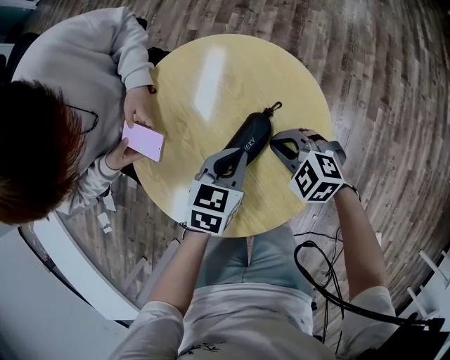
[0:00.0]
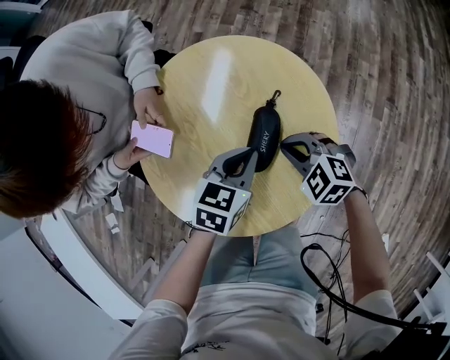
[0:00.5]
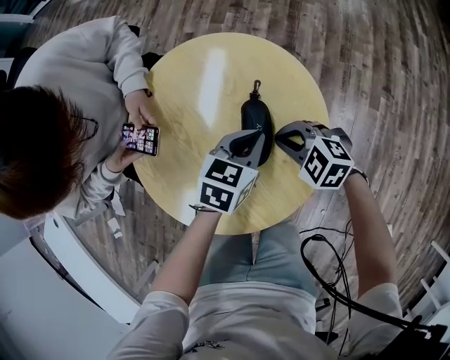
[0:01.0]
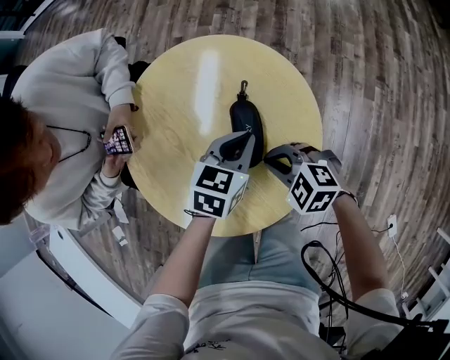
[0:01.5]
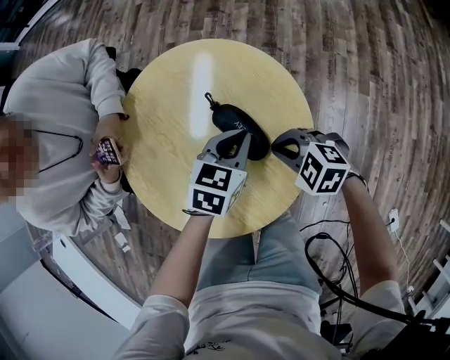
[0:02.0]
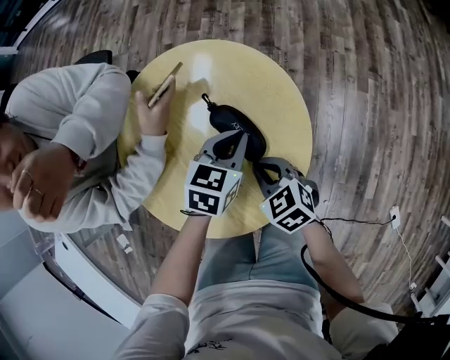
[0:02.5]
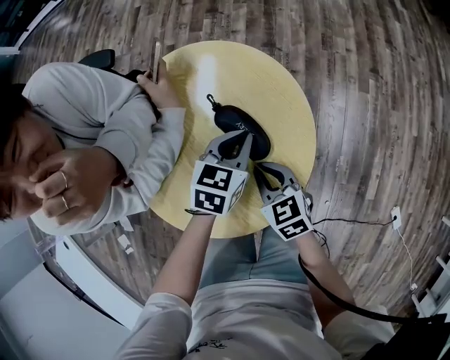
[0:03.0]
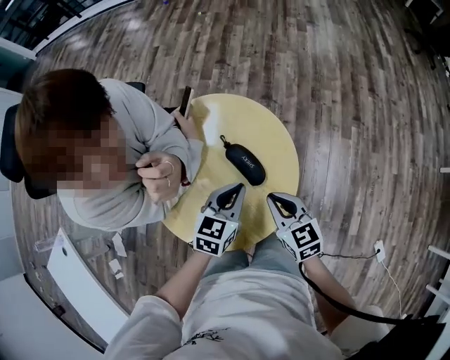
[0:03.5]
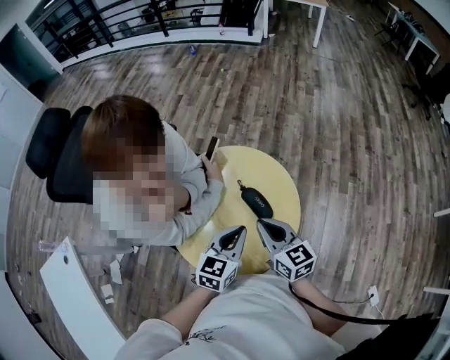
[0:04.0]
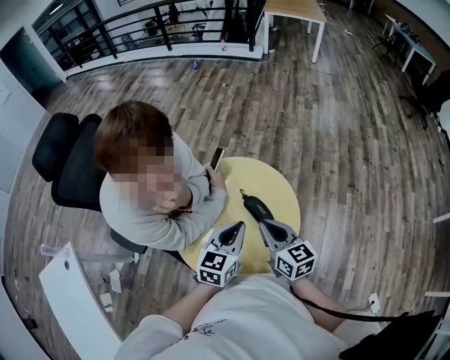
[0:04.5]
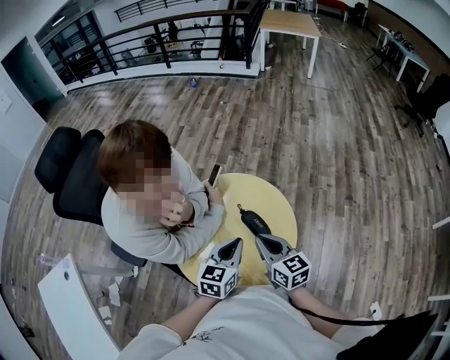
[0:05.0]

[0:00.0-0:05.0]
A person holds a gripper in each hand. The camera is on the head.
0:00.0 to 0:02.5: The right gripper is displaced backward by roughly 5 cm, and turns by approximately 40 degrees, while the left gripper is displaced to the right by roughly 5 cm.
0:02.5 to 0:05.0: The right gripper heads upward, covering roughly 25 cm, and angles its fingers upward, by approximately 30 degrees. The left gripper travels upward and backward by some 25 cm, and turns by roughly 20 degrees.

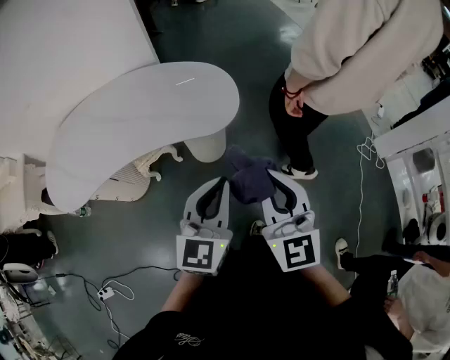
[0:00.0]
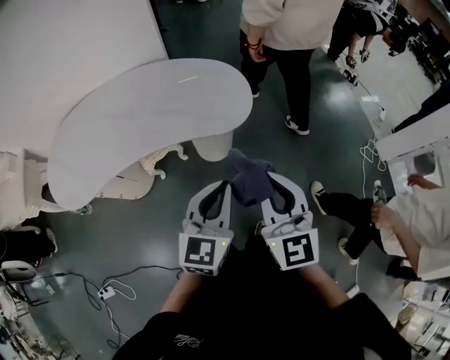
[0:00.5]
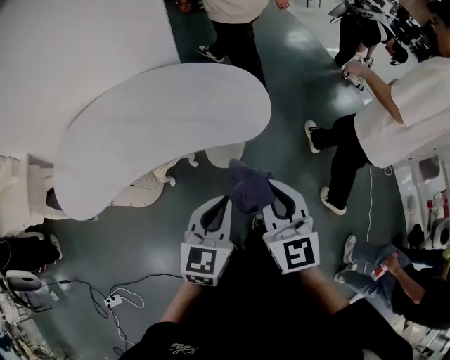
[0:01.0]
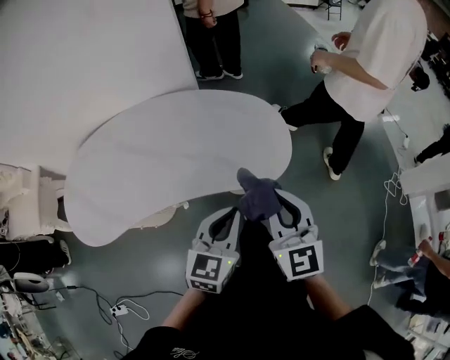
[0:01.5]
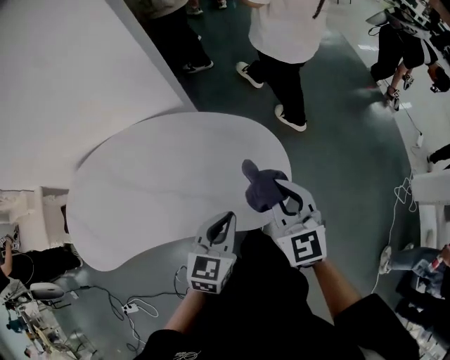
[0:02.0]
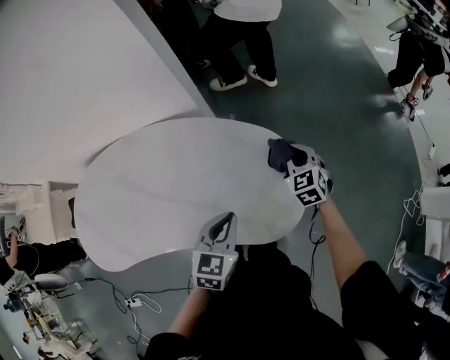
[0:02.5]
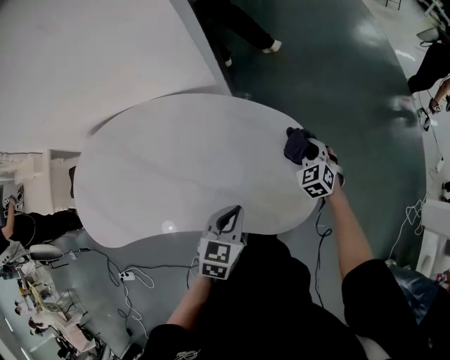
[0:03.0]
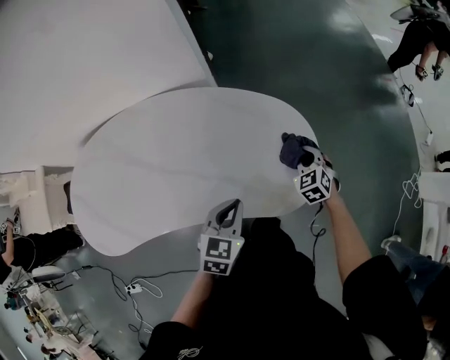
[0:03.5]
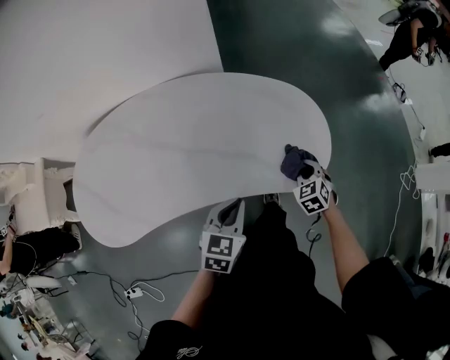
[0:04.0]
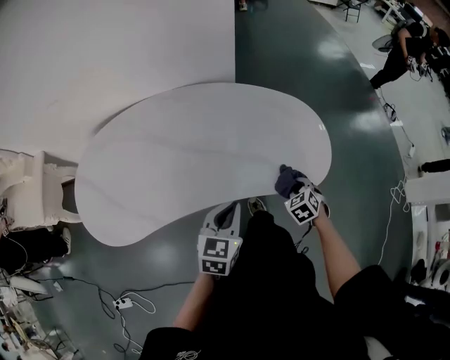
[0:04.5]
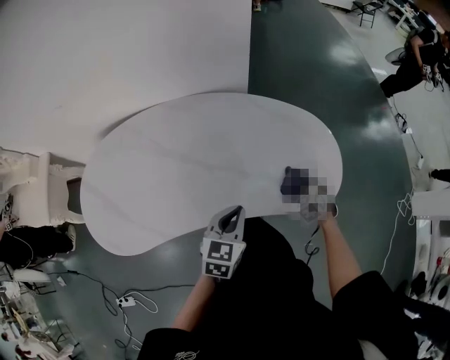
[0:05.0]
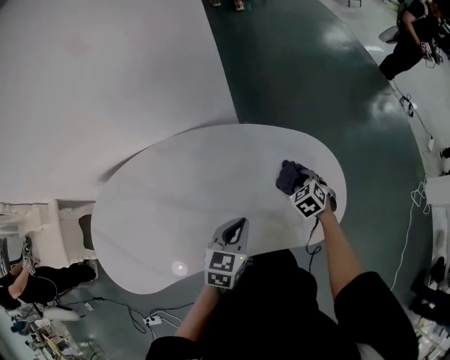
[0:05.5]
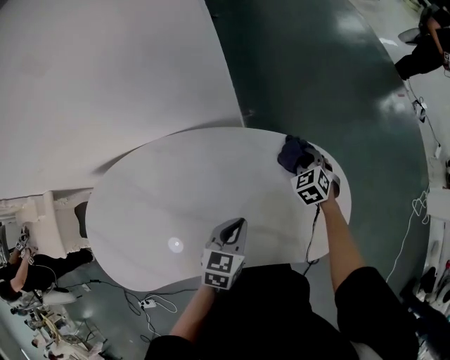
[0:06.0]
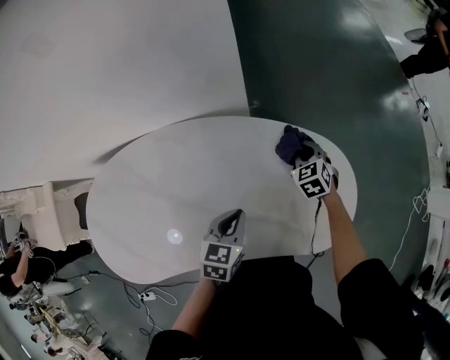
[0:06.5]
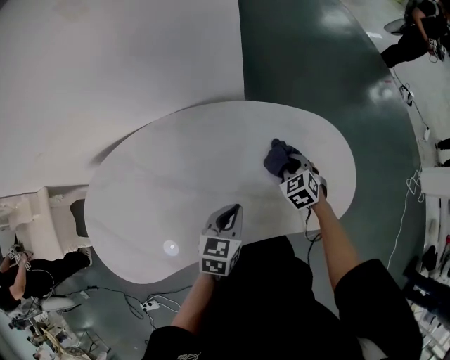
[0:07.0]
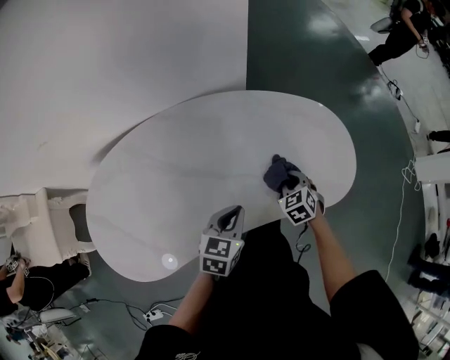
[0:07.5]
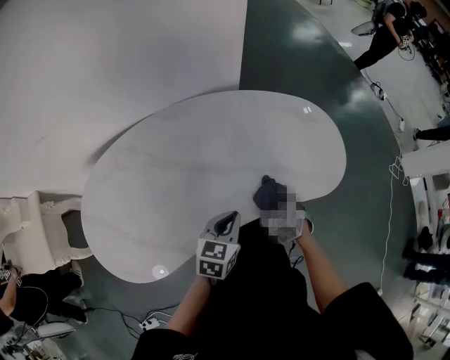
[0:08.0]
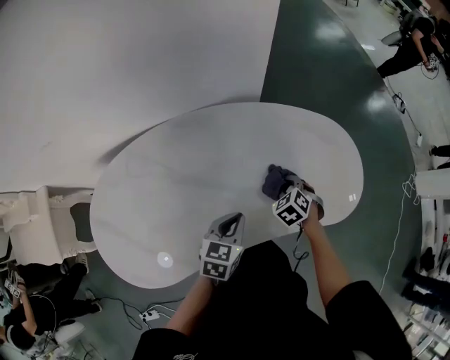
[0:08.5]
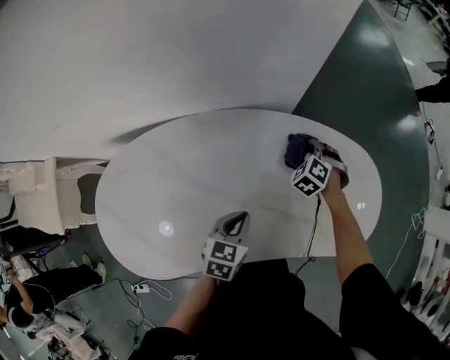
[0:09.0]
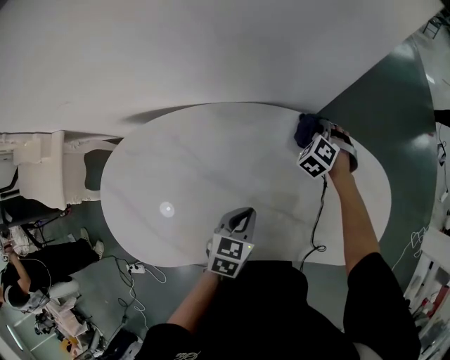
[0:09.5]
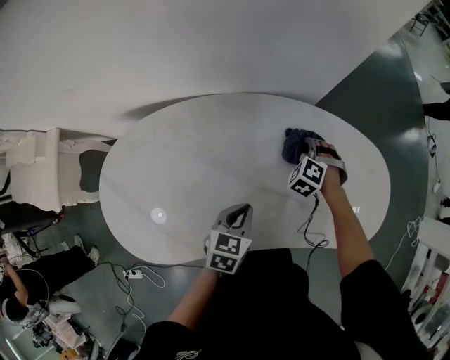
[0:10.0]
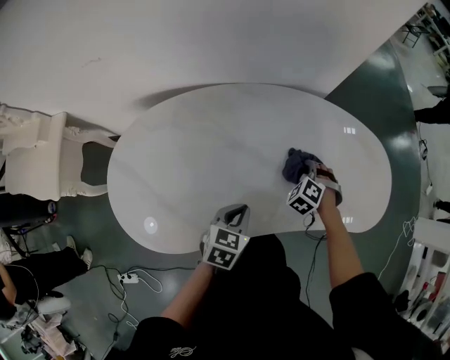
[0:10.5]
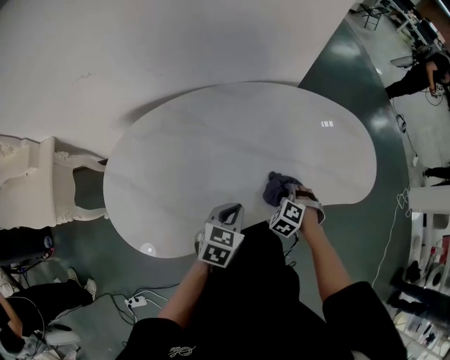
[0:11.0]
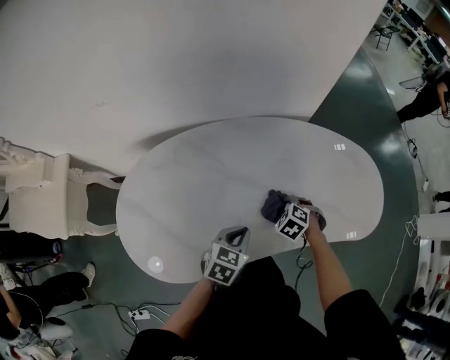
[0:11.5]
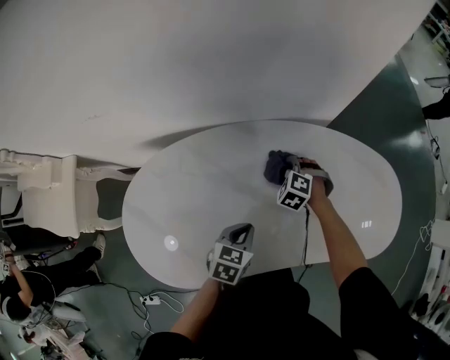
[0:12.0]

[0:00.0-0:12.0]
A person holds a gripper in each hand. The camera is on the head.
0:00.0 to 0:02.0: The right gripper is displaced forward by roughly 40 cm, and turns by about 20 degrees, while the left gripper shifts approximately 35 cm forward and downward, and swivels approximately 30 degrees.
0:02.0 to 0:04.0: The right gripper moves downward, some 25 cm, and tilts its fingers about 30 degrees downward. Meanwhile the left gripper is displaced to the left, backward and downward by some 20 cm.
0:04.0 to 0:06.0: Both grippers travel together forward, about 25 cm.
0:06.0 to 0:08.0: The right gripper is displaced backward by roughly 35 cm. The left gripper goes about 20 cm backward and to the left.
0:08.0 to 0:10.0: The right gripper is displaced forward and to the left by roughly 30 cm, and rotates around the line of its fingers by approximately 50 degrees, counterclockwise from behind, while the left gripper travels to the left and forward by roughly 15 cm.
0:10.0 to 0:12.0: The right gripper goes about 10 cm to the left, and goes backward and returns, about 30 cm each way, while the left gripper travels to the left by approximately 5 cm, and travels backward and back again, roughly 15 cm each way.

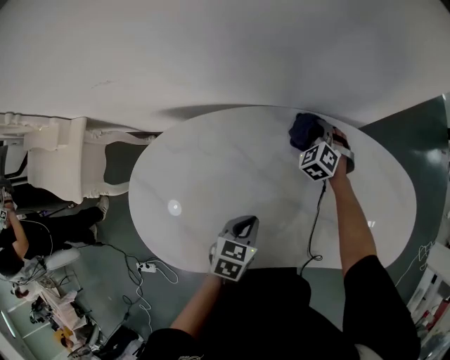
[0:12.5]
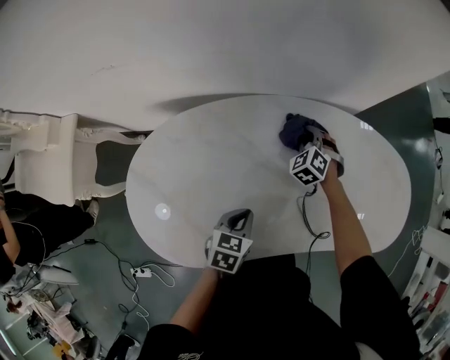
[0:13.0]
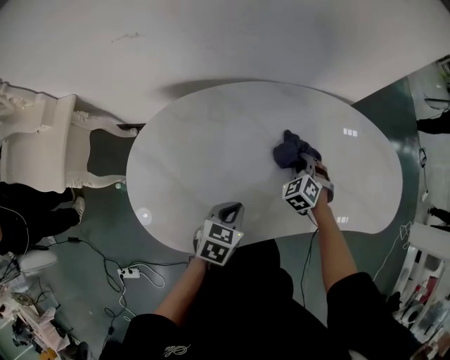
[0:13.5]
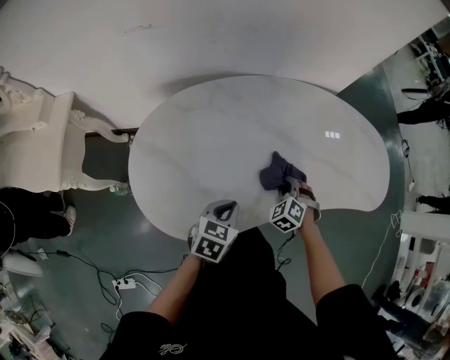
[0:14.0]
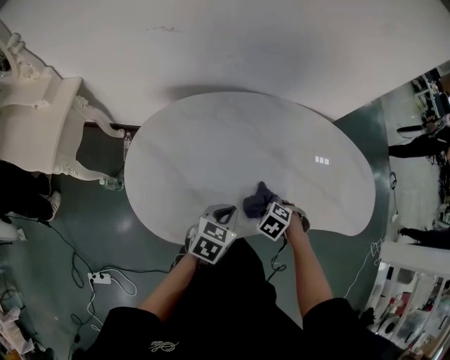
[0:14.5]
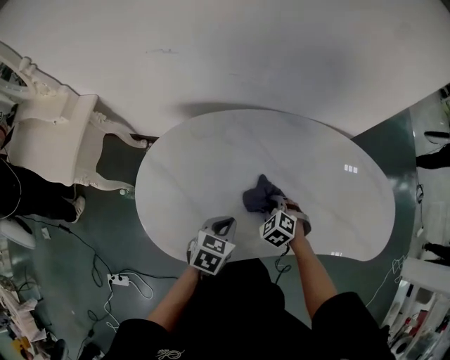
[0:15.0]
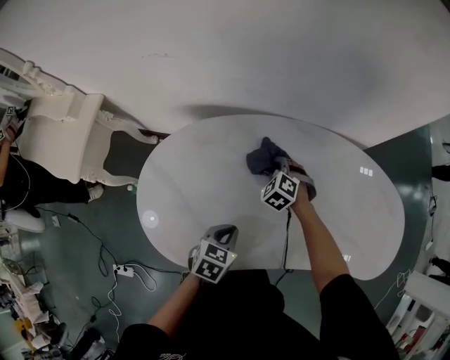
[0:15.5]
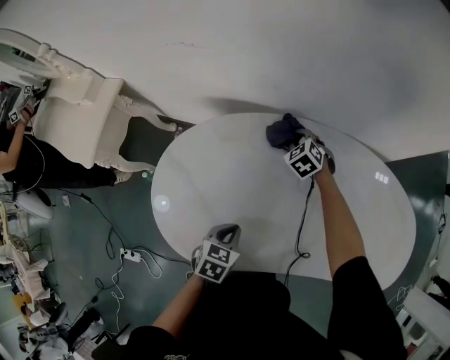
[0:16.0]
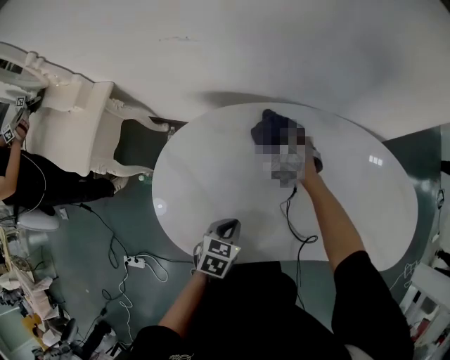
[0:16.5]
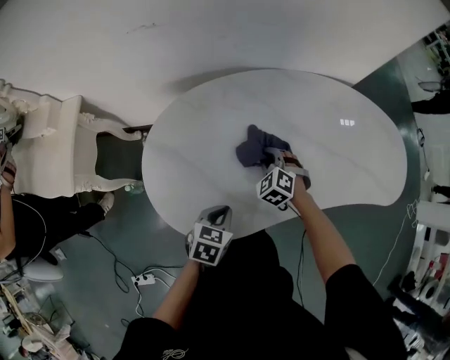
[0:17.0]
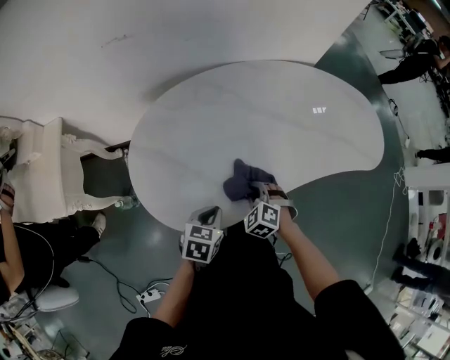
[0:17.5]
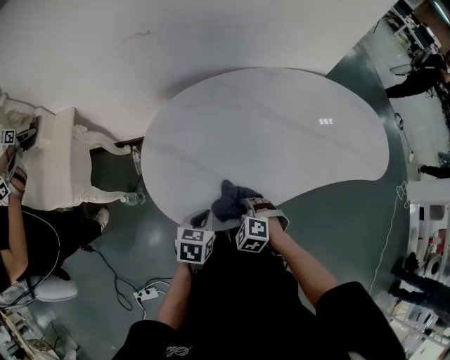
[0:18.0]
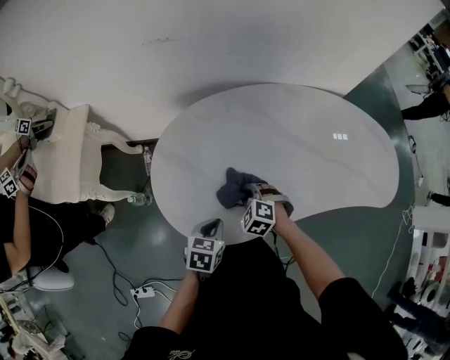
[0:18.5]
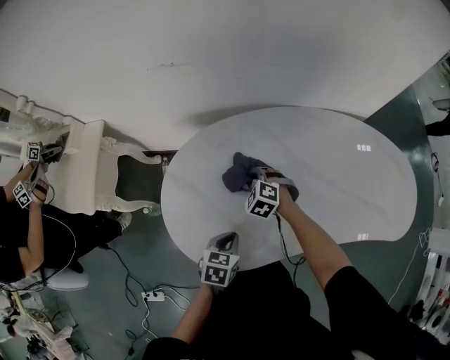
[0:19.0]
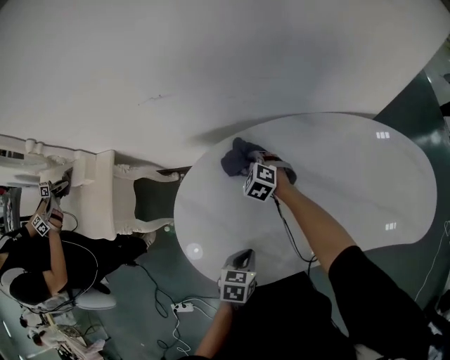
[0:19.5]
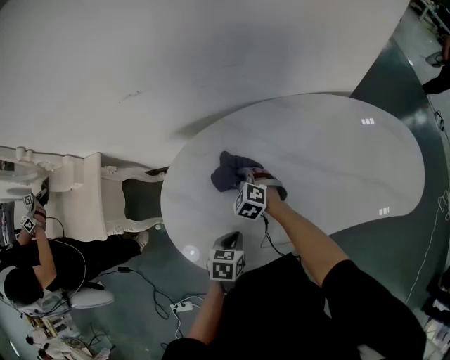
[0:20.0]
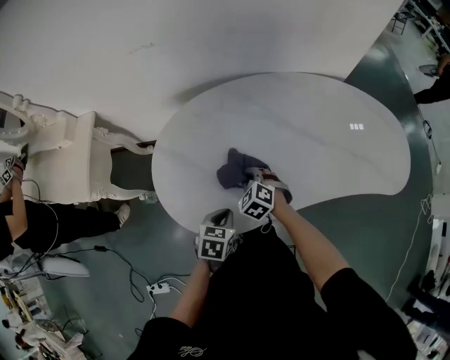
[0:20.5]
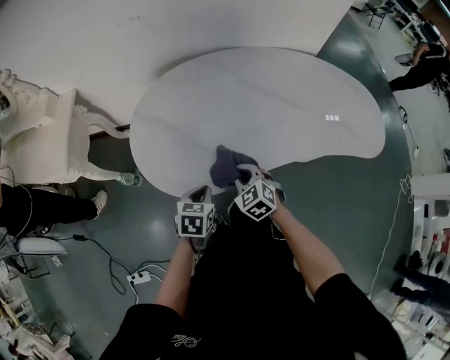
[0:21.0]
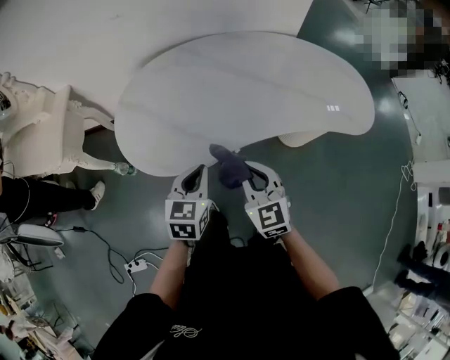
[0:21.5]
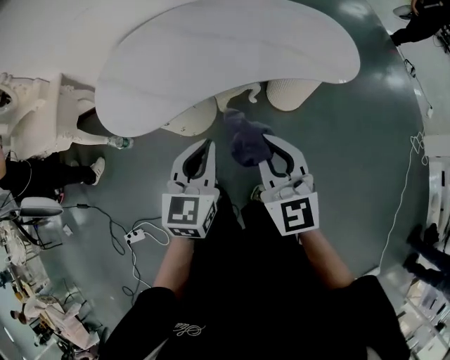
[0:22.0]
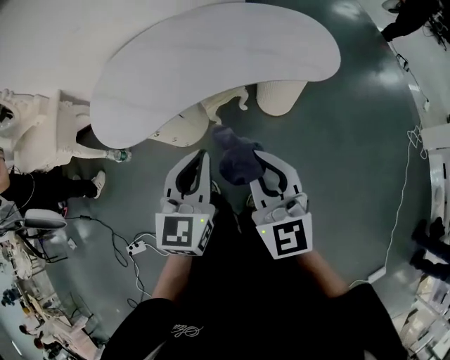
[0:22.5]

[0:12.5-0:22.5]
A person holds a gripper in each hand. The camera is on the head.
0:12.5 to 0:14.5: The right gripper changes place by roughly 40 cm, and angles its fingers downward, by about 40 degrees. The left gripper moves approximately 15 cm.
0:14.5 to 0:16.5: The right gripper ends up about 35 cm from where it was, and tips its fingers upward by approximately 40 degrees, while the left gripper ends up some 10 cm from where it was, and swivels some 20 degrees.
0:16.5 to 0:18.5: The right gripper shifts roughly 30 cm backward. Meanwhile the left gripper goes some 10 cm backward and to the left.
0:18.5 to 0:20.5: The right gripper travels forward and back again, approximately 30 cm each way.
0:20.5 to 0:22.5: The left gripper heads to the right, backward and upward, covering roughly 50 cm, and tips its fingers upward by some 40 degrees; the right gripper moves backward, to the right and upward, roughly 60 cm, and points its fingers approximately 50 degrees further upward.
